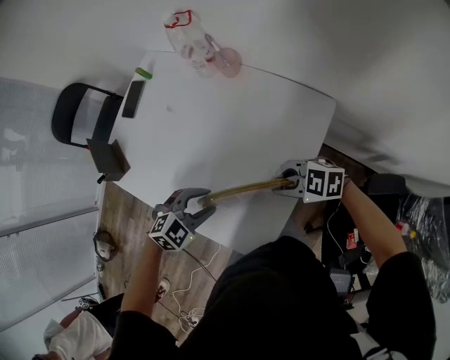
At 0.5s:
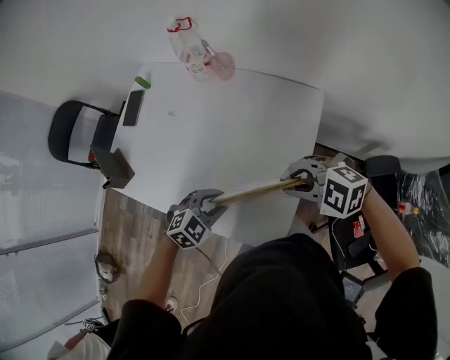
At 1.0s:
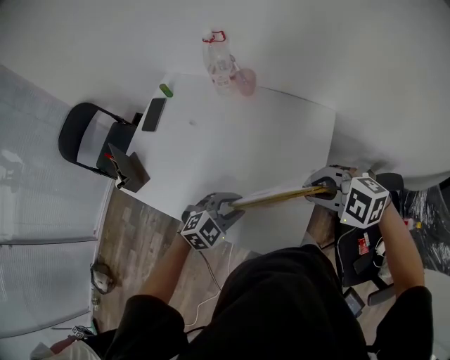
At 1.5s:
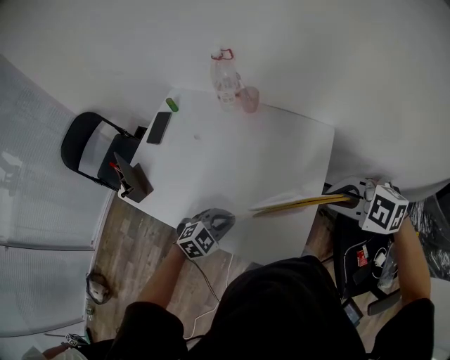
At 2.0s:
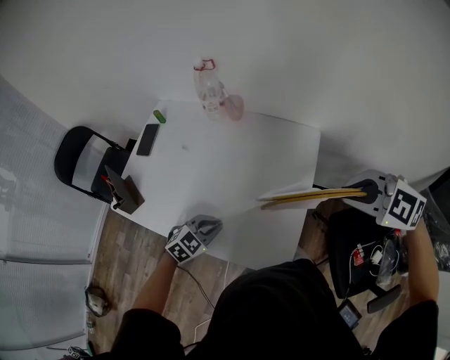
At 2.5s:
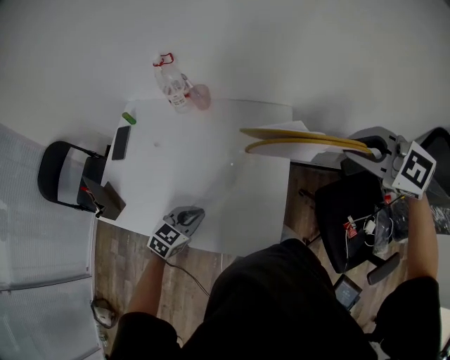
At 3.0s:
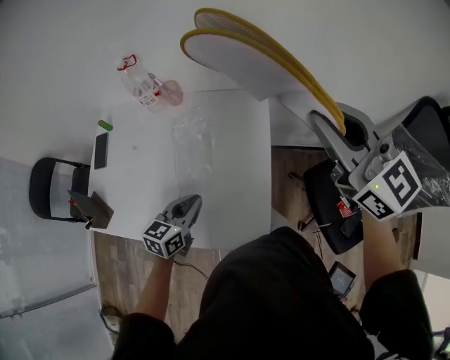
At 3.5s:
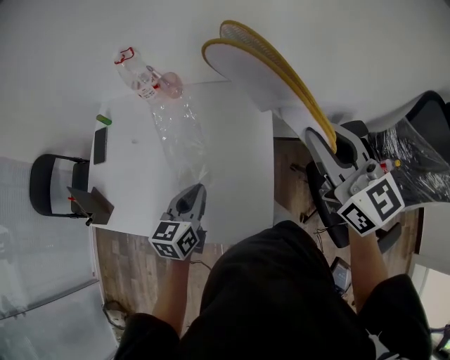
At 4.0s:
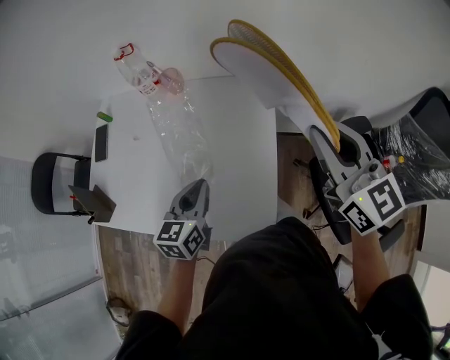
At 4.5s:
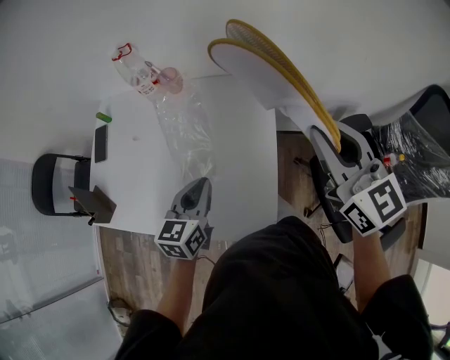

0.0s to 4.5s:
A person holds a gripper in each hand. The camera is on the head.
0.0s to 2.0s: The right gripper is displaced upward by some 20 cm, and swivels about 30 degrees; the left gripper moves some 5 cm, and closes up.
2.0s to 4.5s: The left gripper heads upward, to the right and forward, covering approximately 15 cm, and rotates approximately 40 degrees; the right gripper moves upward, some 5 cm, and tips its fingers upward by about 40 degrees.

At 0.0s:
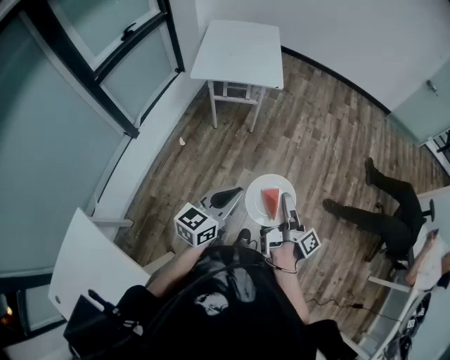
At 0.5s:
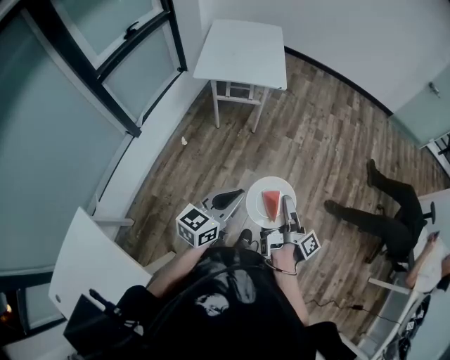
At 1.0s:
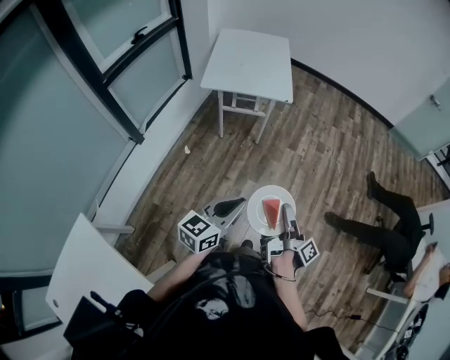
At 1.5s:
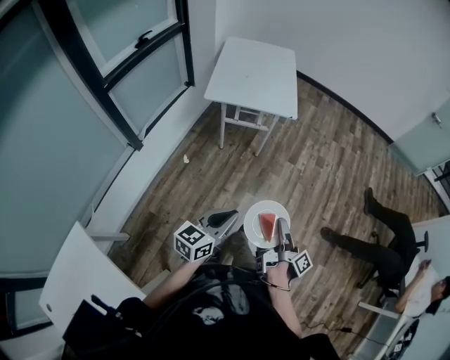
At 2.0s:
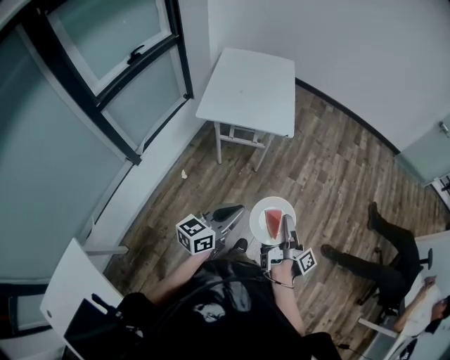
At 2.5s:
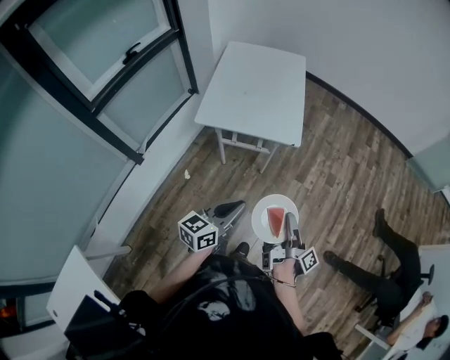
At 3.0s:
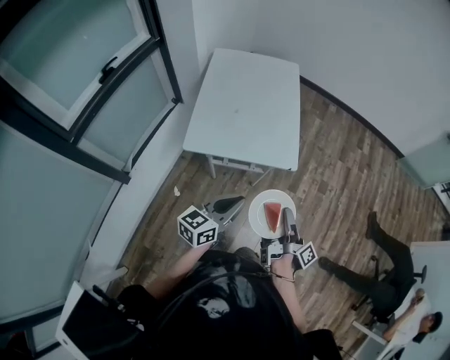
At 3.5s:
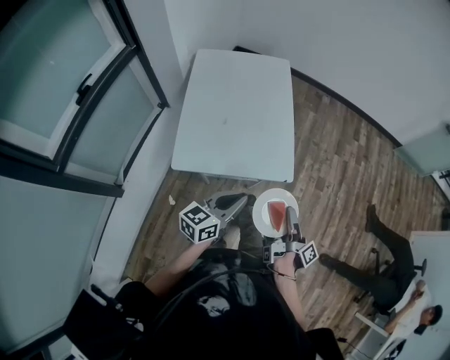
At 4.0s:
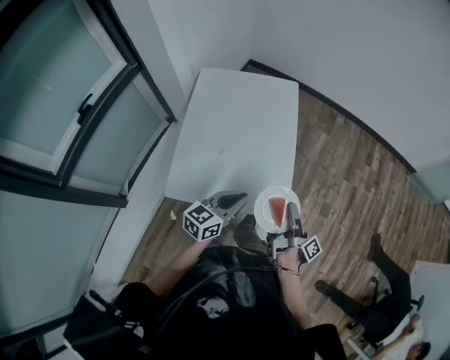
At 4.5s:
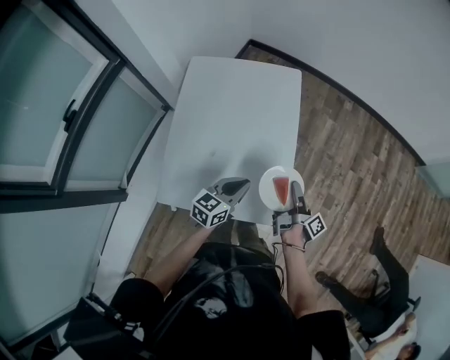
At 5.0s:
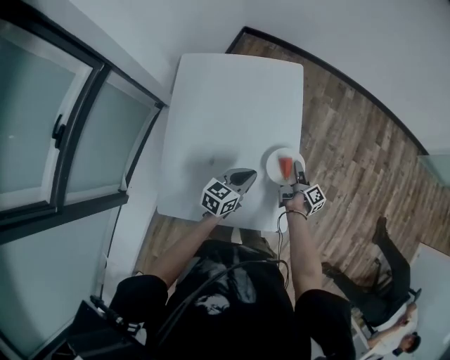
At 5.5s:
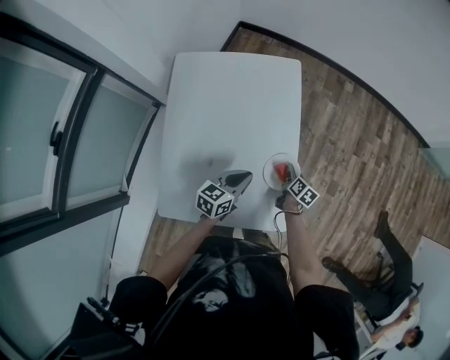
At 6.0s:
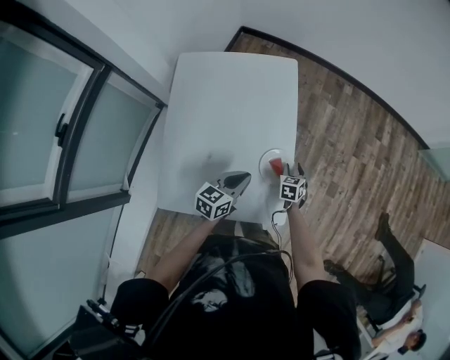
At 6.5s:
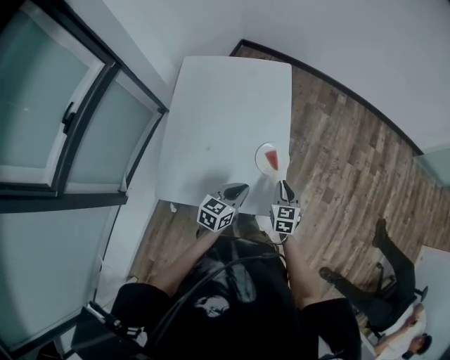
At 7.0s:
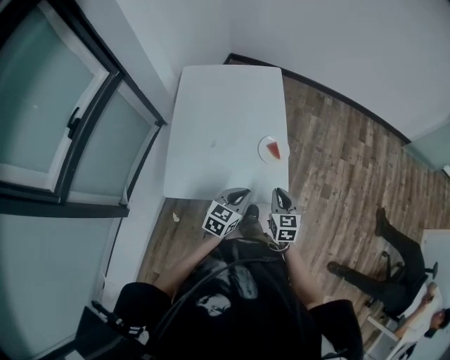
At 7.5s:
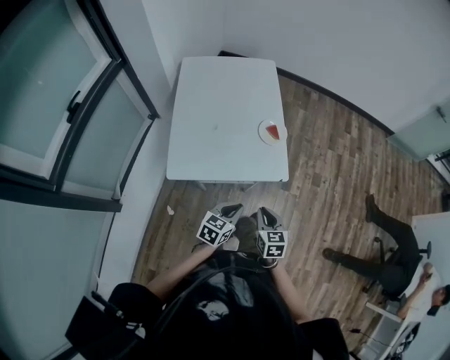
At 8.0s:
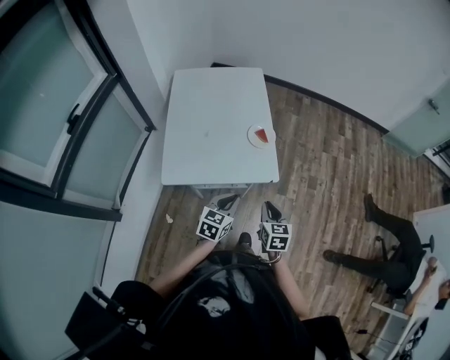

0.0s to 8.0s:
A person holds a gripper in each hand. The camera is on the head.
0.0s to 2.0s: The left gripper changes place by approximately 20 cm.
2.0s to 4.0s: The left gripper shifts by some 60 cm.
4.0s to 6.0s: The left gripper changes place by about 20 cm.
6.0s to 8.0s: The left gripper ends up roughly 30 cm from where it was.

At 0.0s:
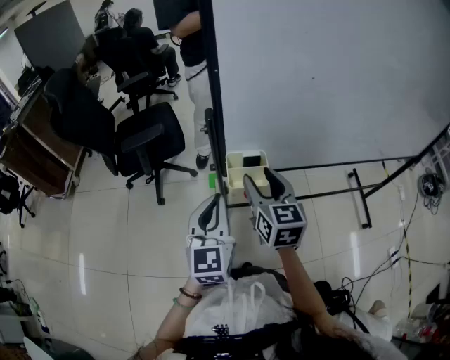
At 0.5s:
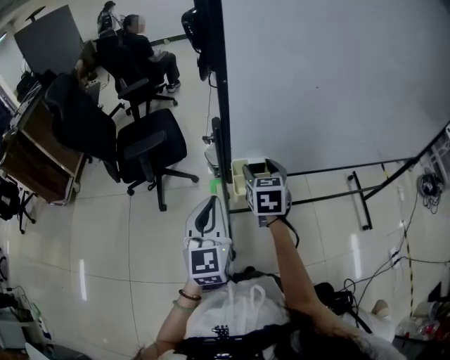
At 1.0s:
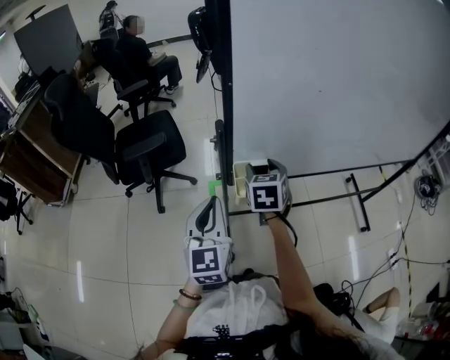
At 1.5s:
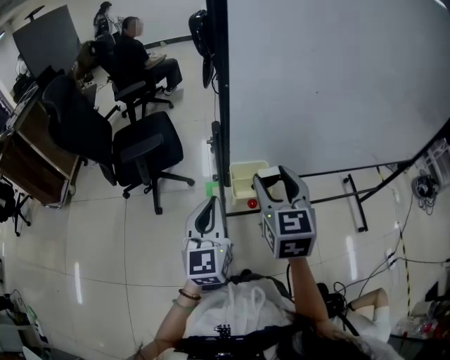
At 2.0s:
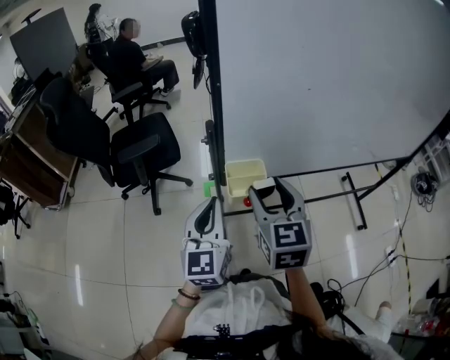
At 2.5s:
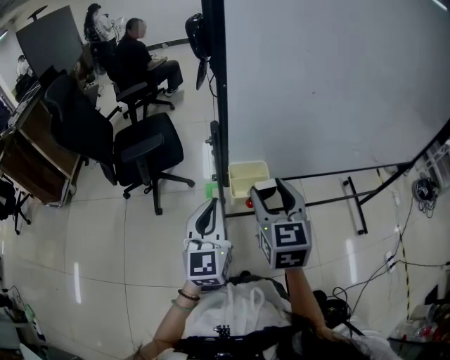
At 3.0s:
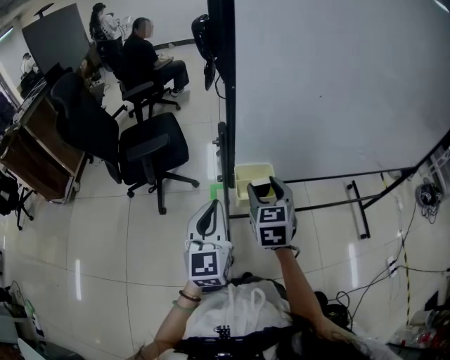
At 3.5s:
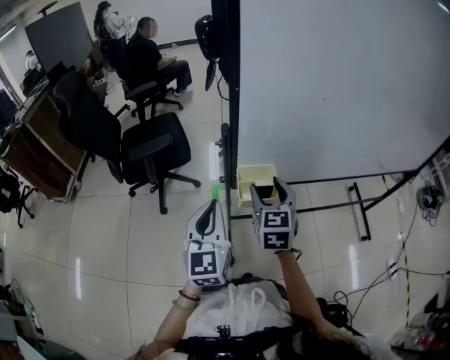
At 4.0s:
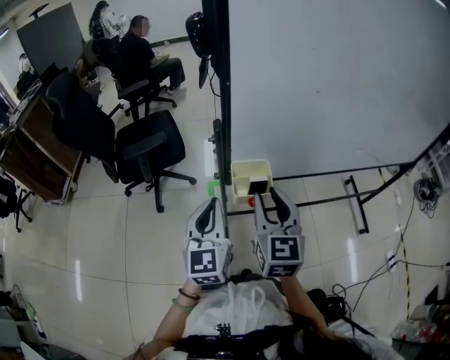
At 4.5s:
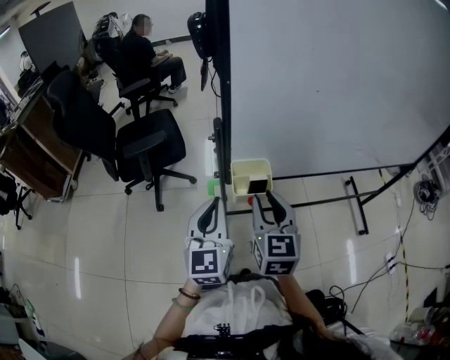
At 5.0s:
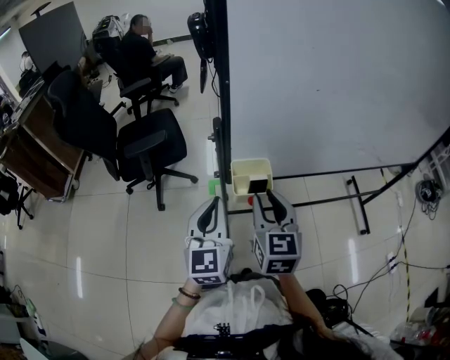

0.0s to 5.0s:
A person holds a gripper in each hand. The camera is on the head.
0.0s to 2.5s: The right gripper moves upward, some 5 cm.
2.5s to 5.0s: The right gripper closes its fingers.

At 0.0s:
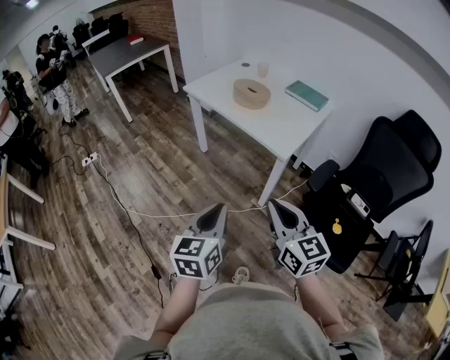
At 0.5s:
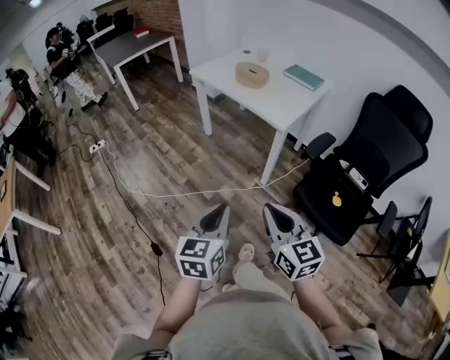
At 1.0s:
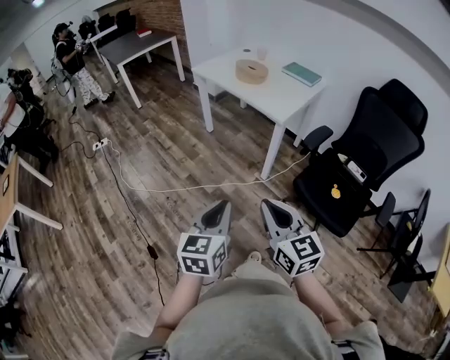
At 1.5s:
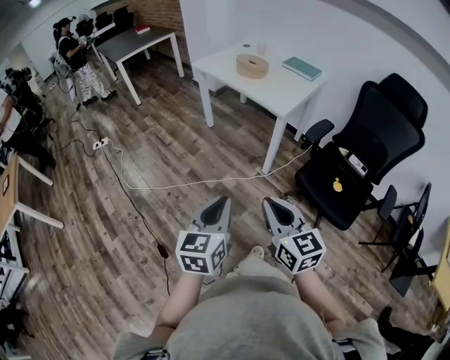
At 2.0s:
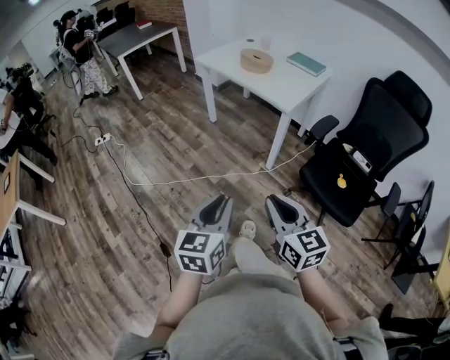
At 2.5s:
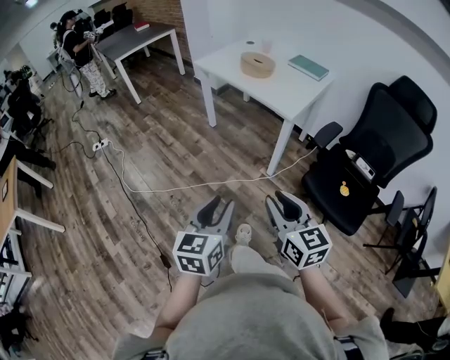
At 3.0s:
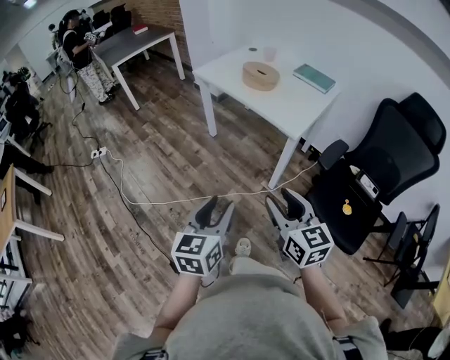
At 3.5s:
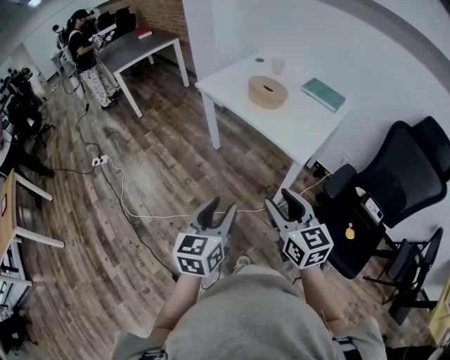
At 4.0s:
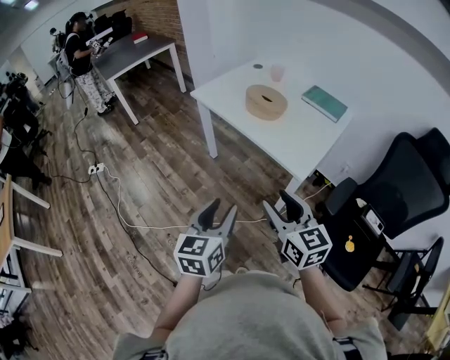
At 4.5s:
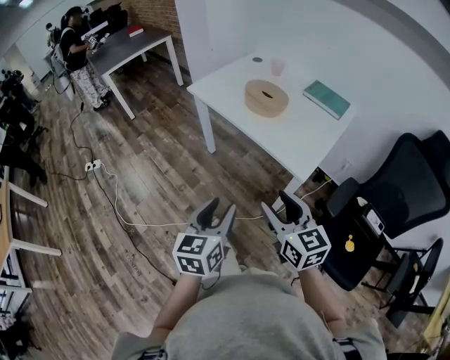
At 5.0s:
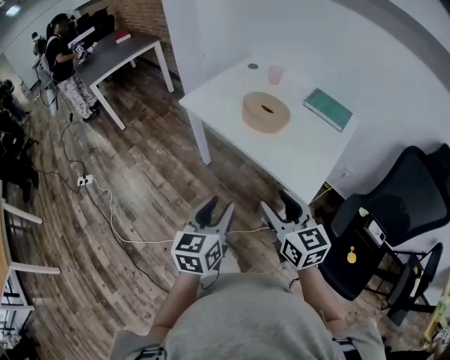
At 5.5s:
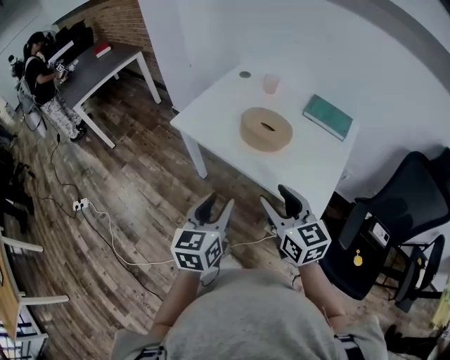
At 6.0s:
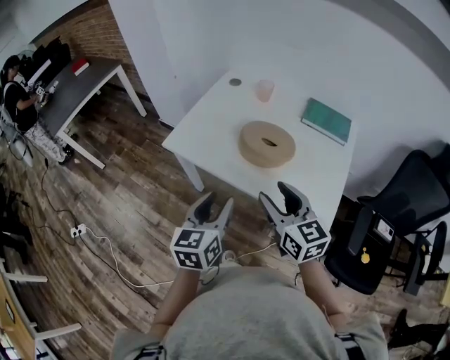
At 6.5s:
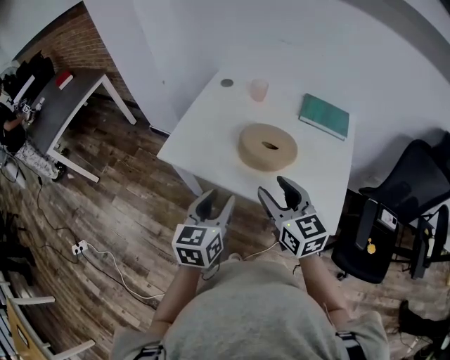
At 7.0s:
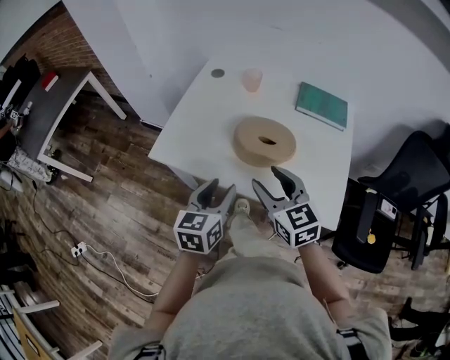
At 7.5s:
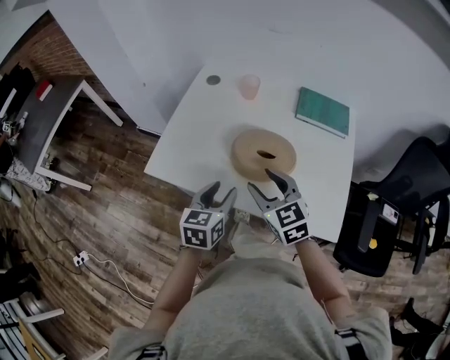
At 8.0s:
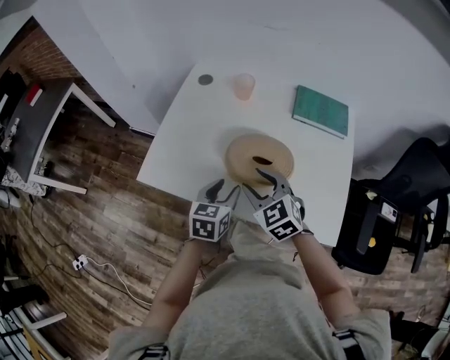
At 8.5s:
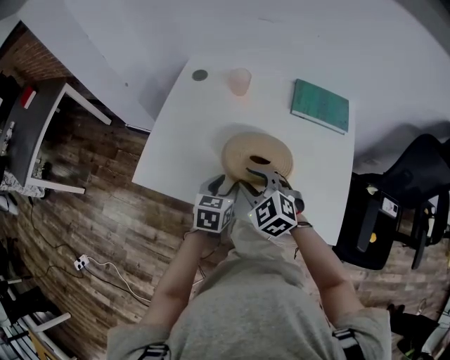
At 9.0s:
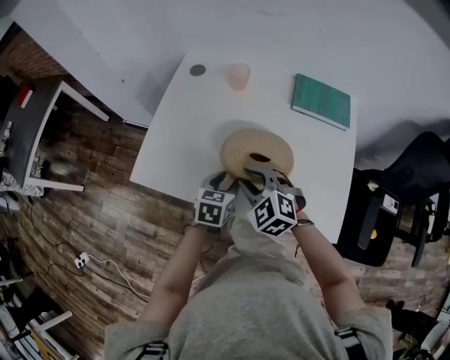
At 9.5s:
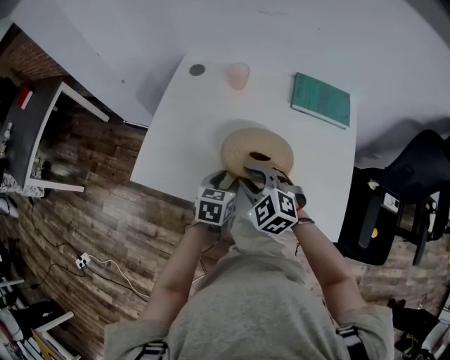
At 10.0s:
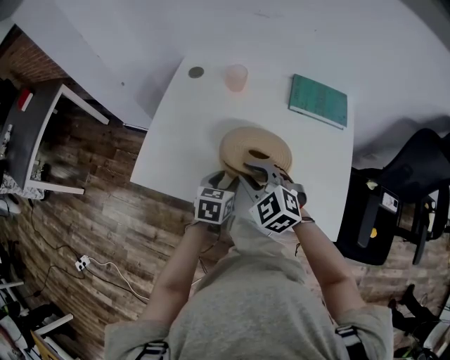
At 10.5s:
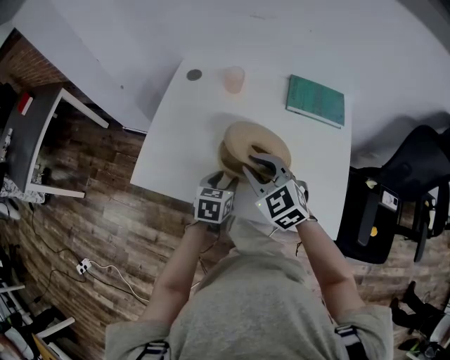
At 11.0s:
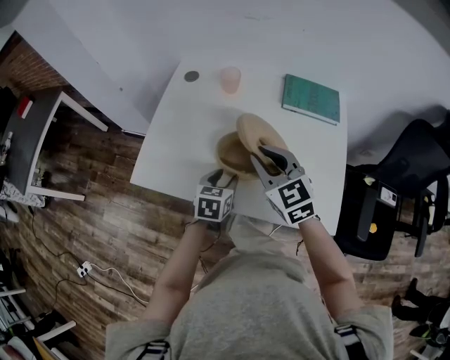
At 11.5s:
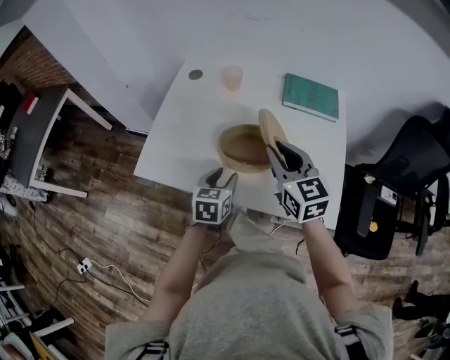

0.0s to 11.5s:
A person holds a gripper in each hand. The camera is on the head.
0.0s to 2.0s: The two grippers go roughly 25 cm backward.
2.0s to 4.0s: The grippers both shift forward by roughly 35 cm. The right gripper opens its fingers, while the left gripper opens.
4.0s to 6.0s: Both grippers travel together forward, approximately 35 cm.
6.0s to 7.5s: Both grippers travel together forward and downward, roughly 20 cm.
7.5s to 9.5s: The right gripper shifts roughly 10 cm downward and forward, swivels approximately 30 degrees, and closes up. Meanwhile the left gripper is displaced downward and forward by some 15 cm.
9.5s to 11.5s: The right gripper moves upward and to the right, some 15 cm, and changes its angle by some 50 degrees, while the left gripper ends up about 5 cm from where it was.
